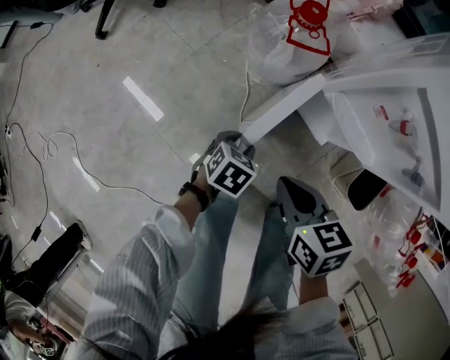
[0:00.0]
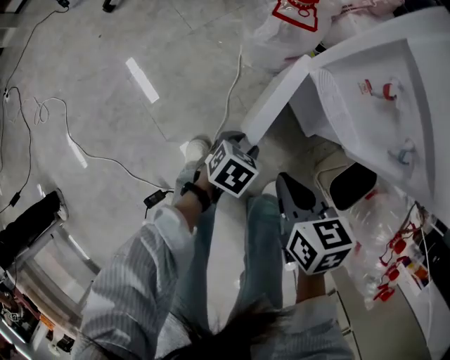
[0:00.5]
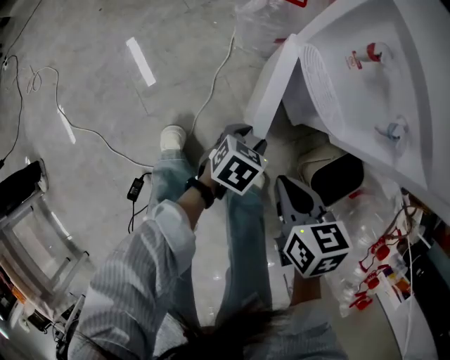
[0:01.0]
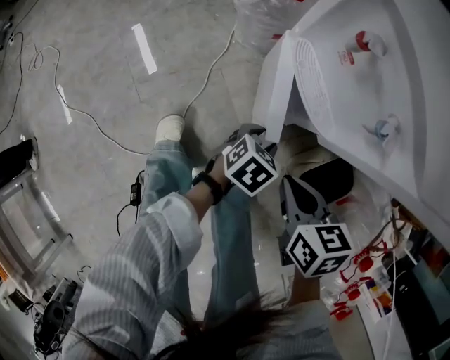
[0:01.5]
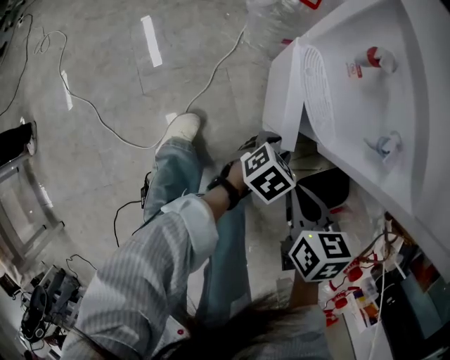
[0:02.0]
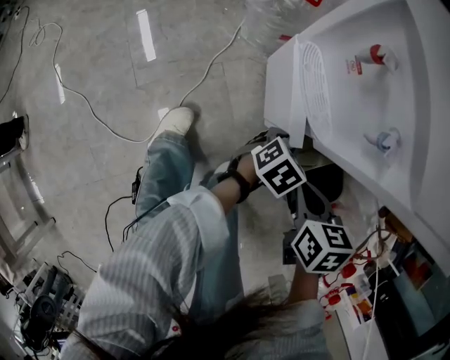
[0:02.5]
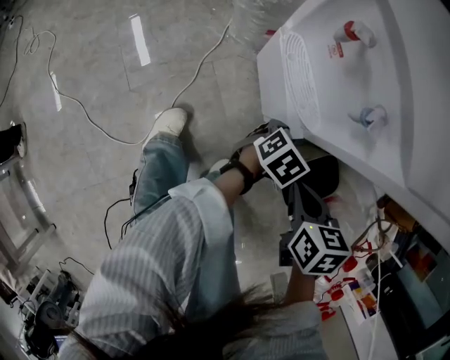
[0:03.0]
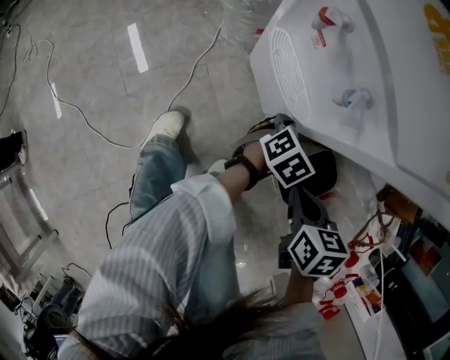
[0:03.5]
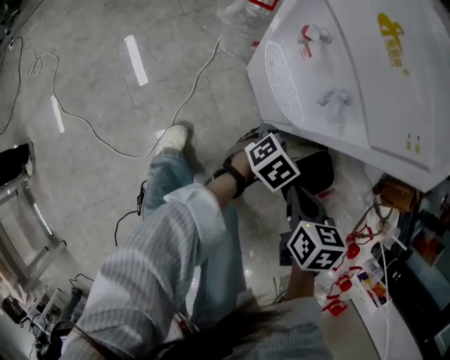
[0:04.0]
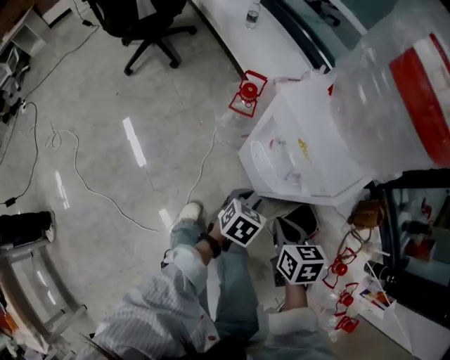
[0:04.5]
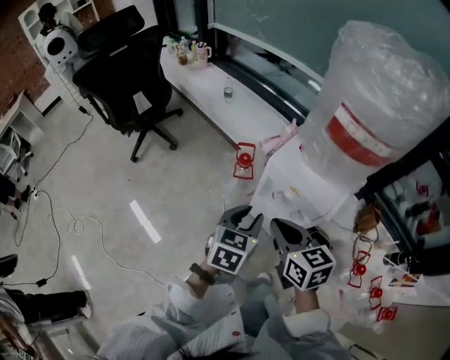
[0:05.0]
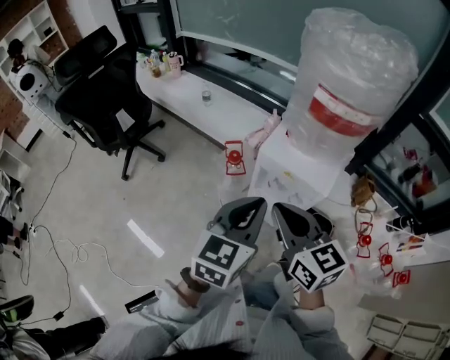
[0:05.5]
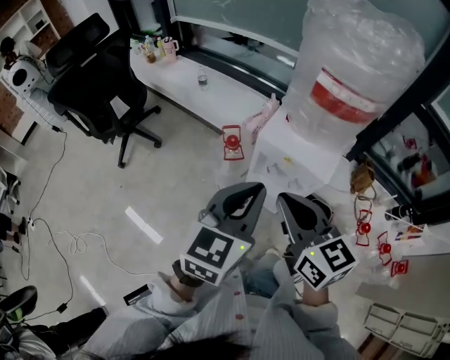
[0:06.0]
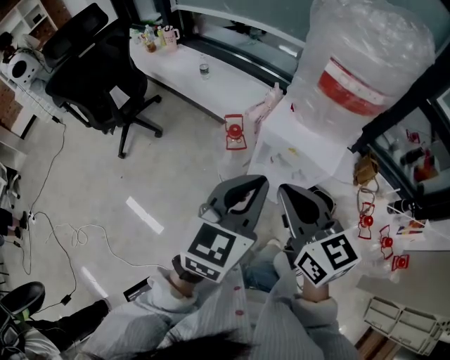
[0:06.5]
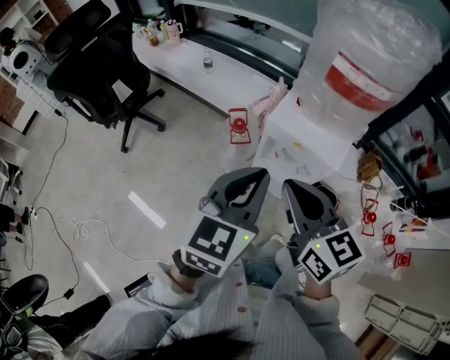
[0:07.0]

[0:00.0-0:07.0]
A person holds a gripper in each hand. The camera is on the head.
0:00.0 to 0:02.0: Both grippers travel together to the right, some 30 cm.
0:02.0 to 0:03.5: The grippers both shift to the right by roughly 10 cm.
0:03.5 to 0:05.0: Both grippers move upward and to the left, some 50 cm. The right gripper tilts its fingers some 30 degrees upward. Meanwhile the left gripper turns by about 30 degrees.
0:05.0 to 0:07.0: Both grippers move upward, some 15 cm. The left gripper changes its angle by some 20 degrees, and closes up.

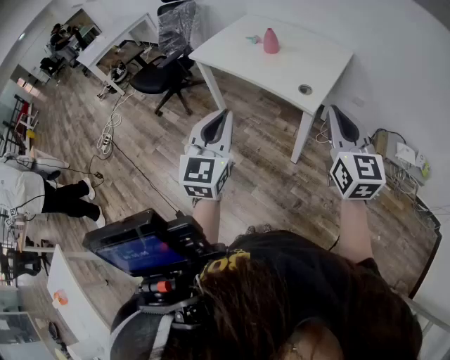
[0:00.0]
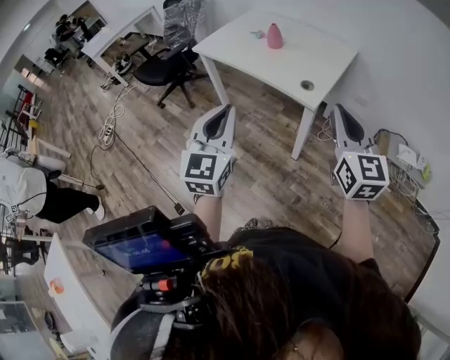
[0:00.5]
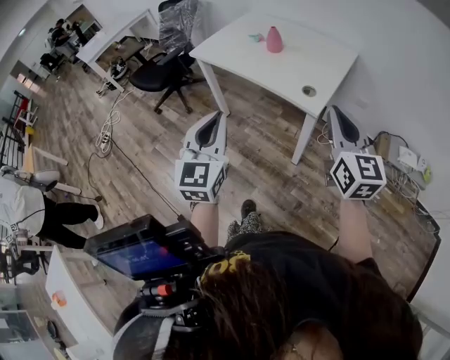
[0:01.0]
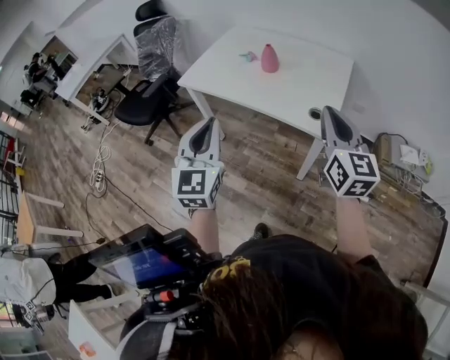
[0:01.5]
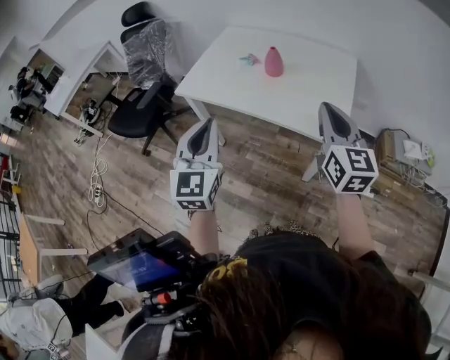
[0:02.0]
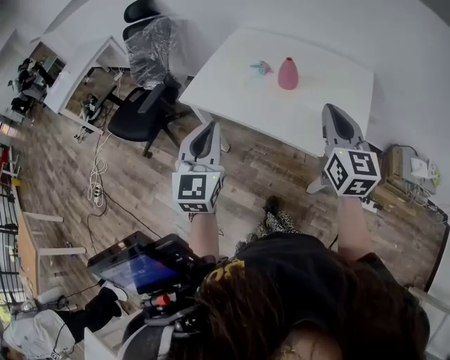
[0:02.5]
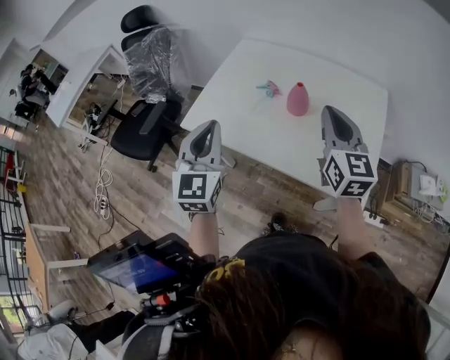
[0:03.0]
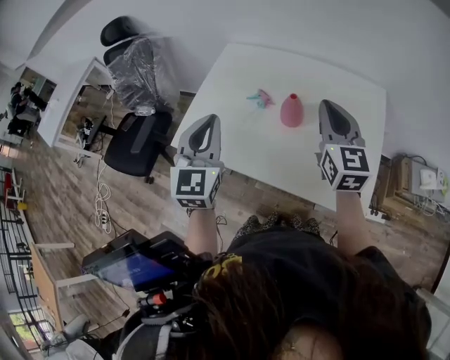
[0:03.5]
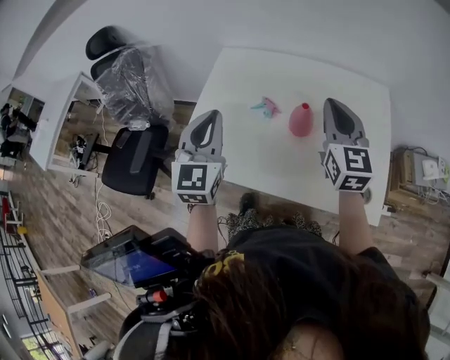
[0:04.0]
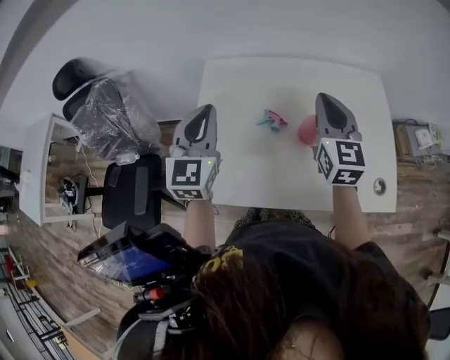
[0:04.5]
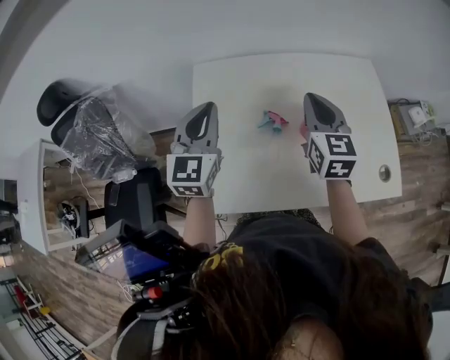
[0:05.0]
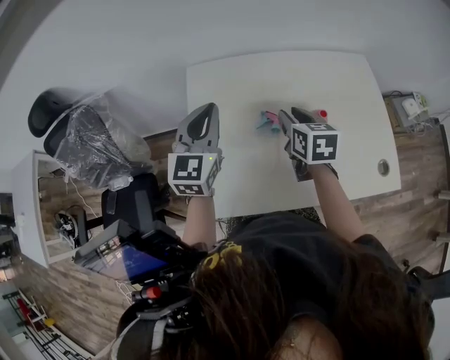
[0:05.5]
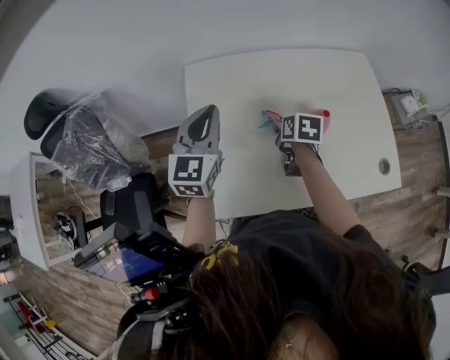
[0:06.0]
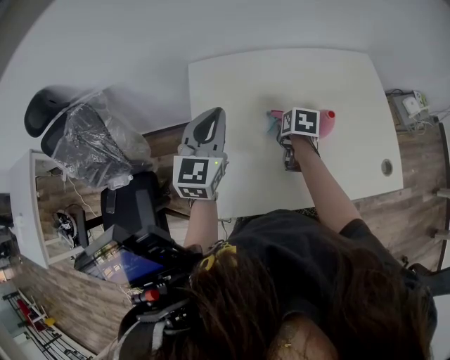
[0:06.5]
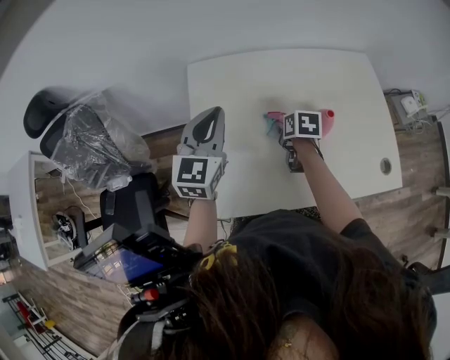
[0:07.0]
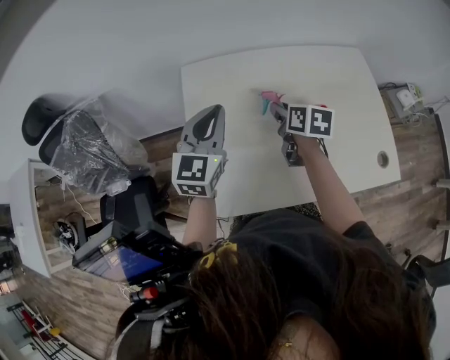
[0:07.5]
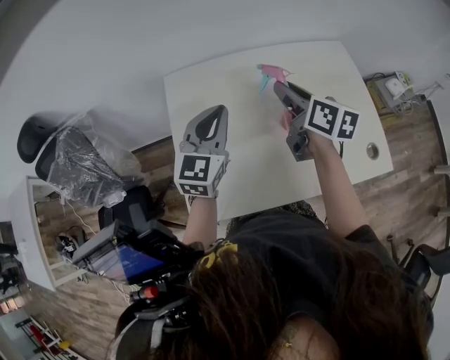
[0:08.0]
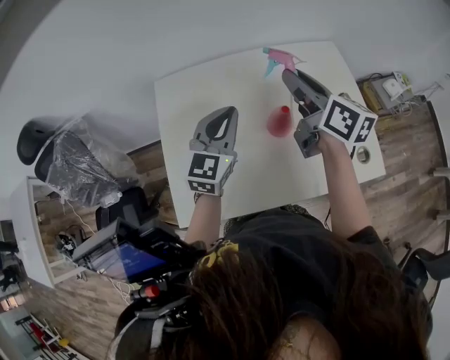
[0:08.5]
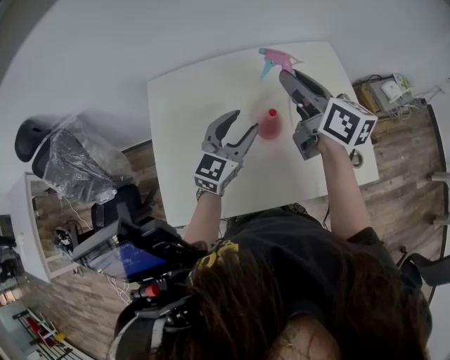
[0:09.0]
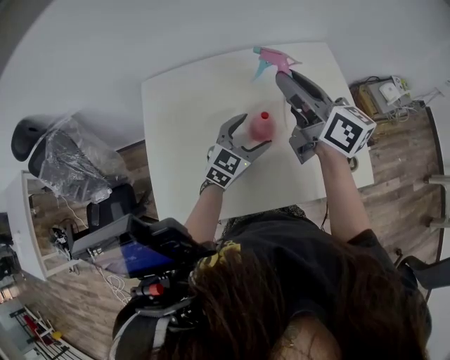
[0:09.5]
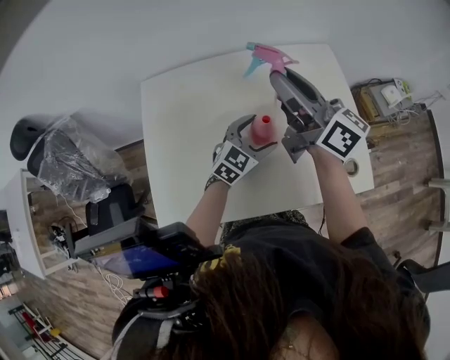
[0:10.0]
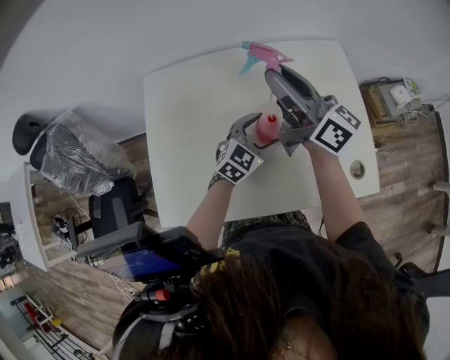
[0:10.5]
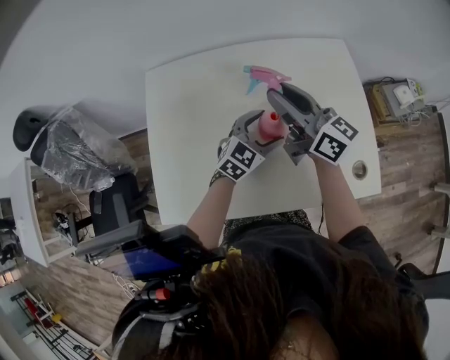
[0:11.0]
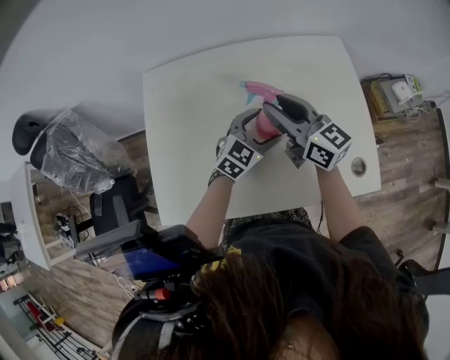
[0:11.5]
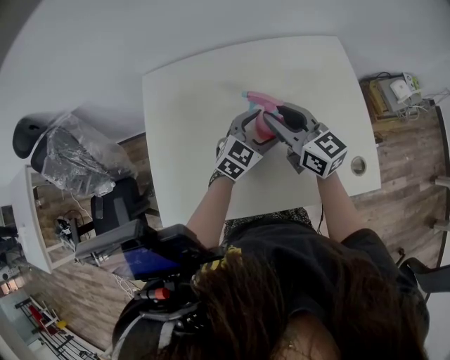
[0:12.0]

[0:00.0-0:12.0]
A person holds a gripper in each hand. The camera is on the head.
0:00.0 to 0:02.0: Both grippers move forward and to the left, roughly 30 cm.
0:02.0 to 0:04.0: The two grippers go approximately 35 cm forward.
0:04.0 to 0:06.0: The right gripper shifts about 25 cm downward and to the left, angles its fingers downward, by about 50 degrees, and opens, while the left gripper shifts approximately 20 cm forward and to the left, and rotates about 30 degrees.
0:06.0 to 0:08.0: The left gripper goes approximately 5 cm to the right. Meanwhile the right gripper heads upward, covering approximately 15 cm, and tilts its fingers roughly 30 degrees upward.
0:08.0 to 0:10.0: The right gripper travels upward and to the right by about 10 cm, and angles its fingers upward, by about 30 degrees, while the left gripper shifts some 25 cm to the right and downward, turns by roughly 30 degrees, and opens up.
0:10.0 to 0:12.0: The right gripper is displaced downward by about 15 cm, and changes its angle by about 20 degrees.

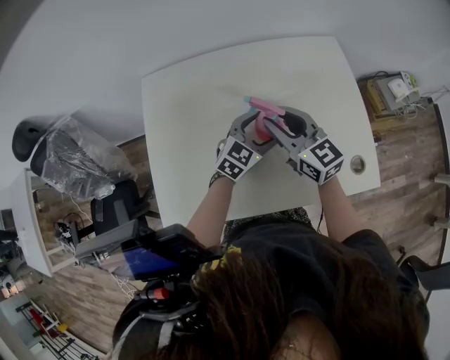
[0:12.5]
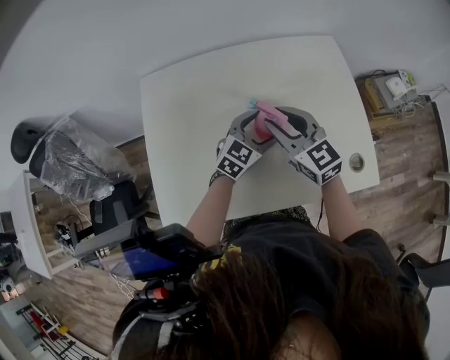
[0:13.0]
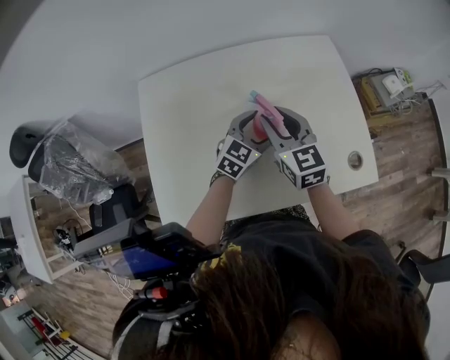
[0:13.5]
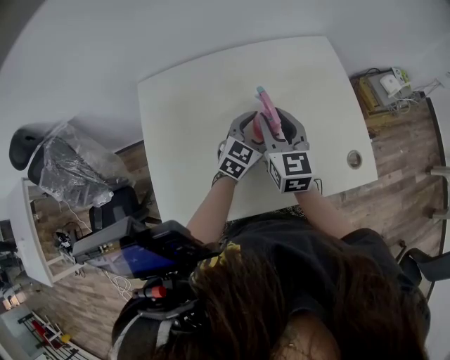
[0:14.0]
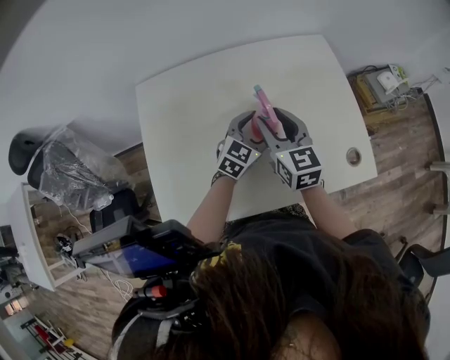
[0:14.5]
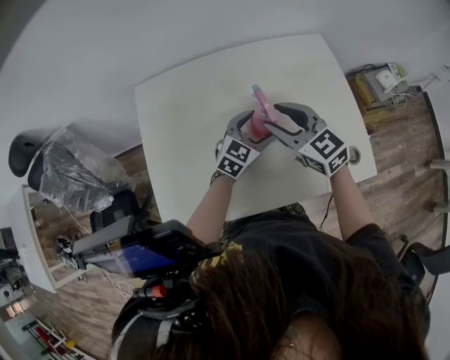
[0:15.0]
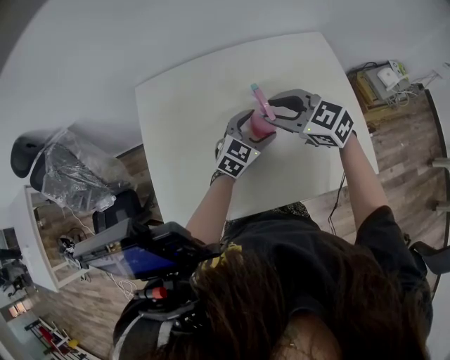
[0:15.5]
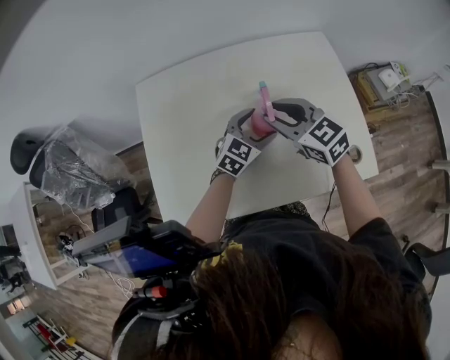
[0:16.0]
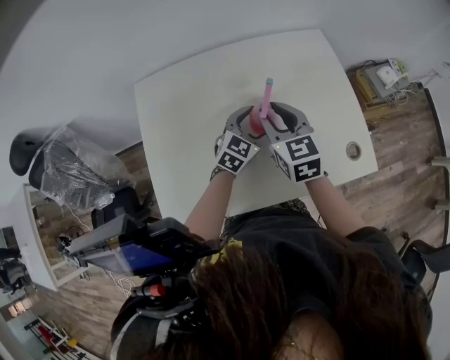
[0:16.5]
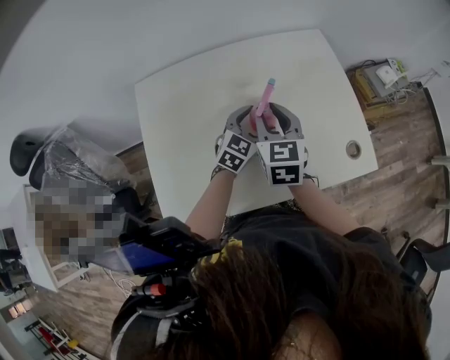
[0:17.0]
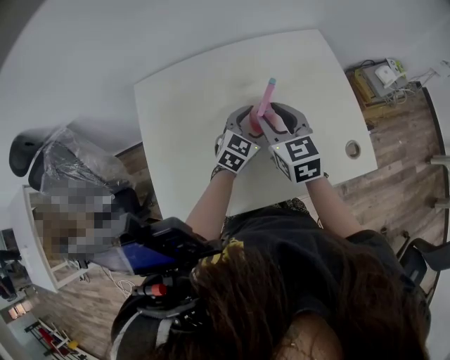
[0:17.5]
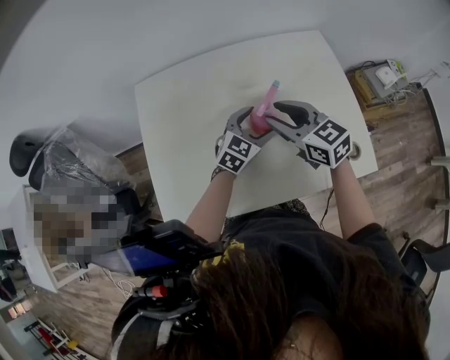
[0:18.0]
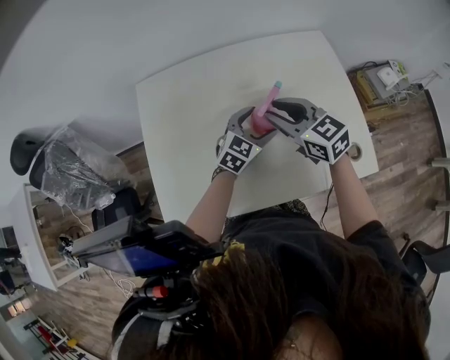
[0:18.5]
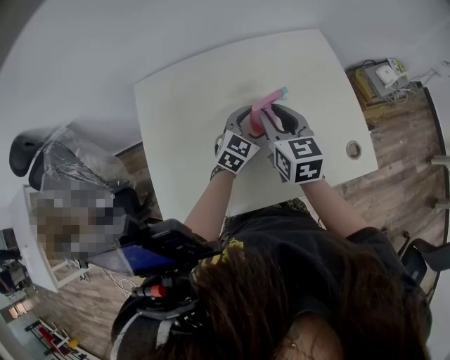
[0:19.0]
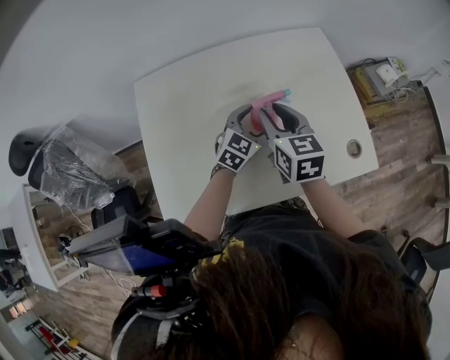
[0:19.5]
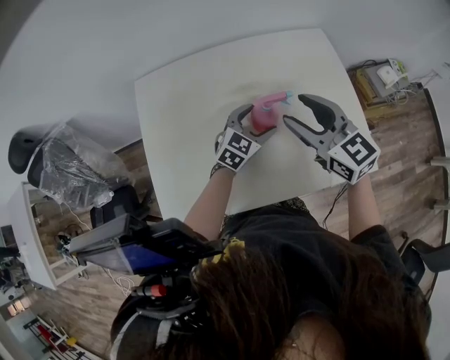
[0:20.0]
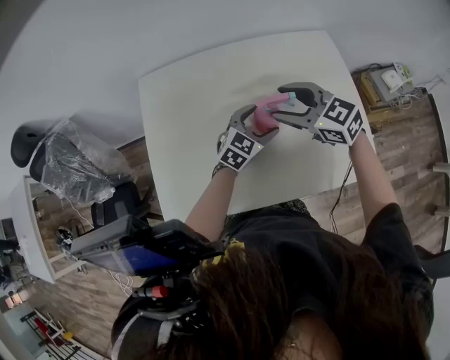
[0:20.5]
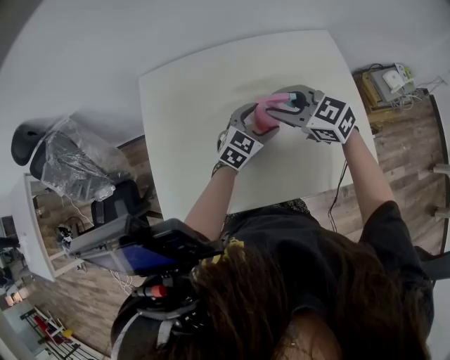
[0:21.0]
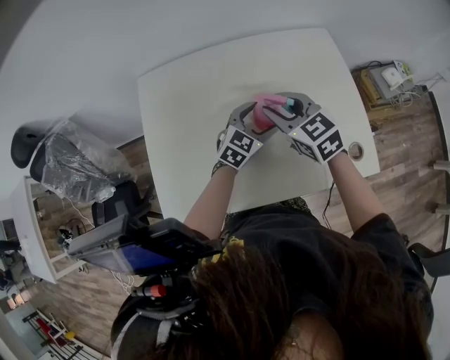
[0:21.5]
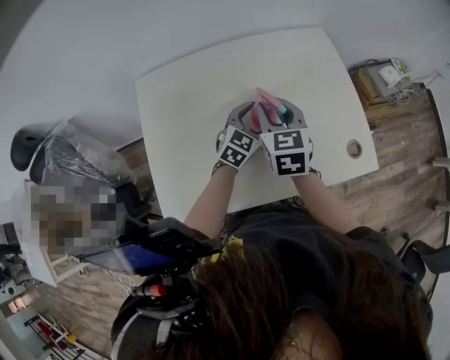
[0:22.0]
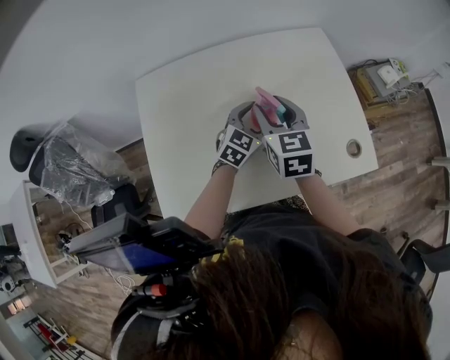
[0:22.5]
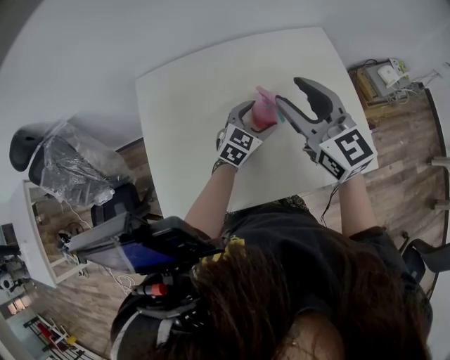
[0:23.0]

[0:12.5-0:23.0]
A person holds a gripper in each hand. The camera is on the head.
0:12.5 to 0:14.5: The right gripper rotates roughly 20 degrees.
0:19.0 to 0:21.0: The right gripper turns by roughly 50 degrees, and opens, then closes again.
0:21.0 to 0:23.0: The right gripper is displaced upward by some 10 cm, and turns by roughly 40 degrees.
